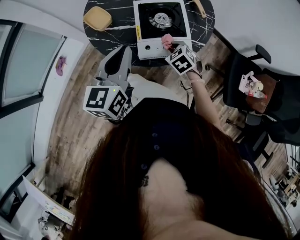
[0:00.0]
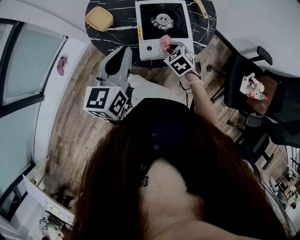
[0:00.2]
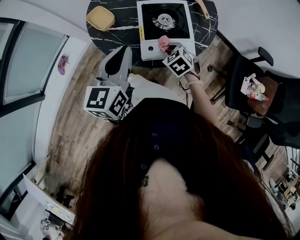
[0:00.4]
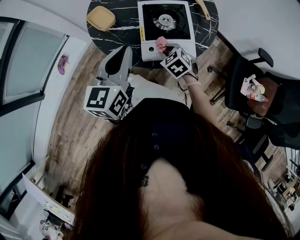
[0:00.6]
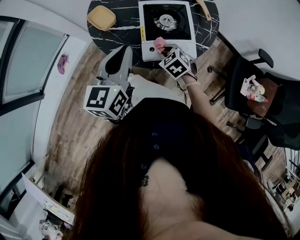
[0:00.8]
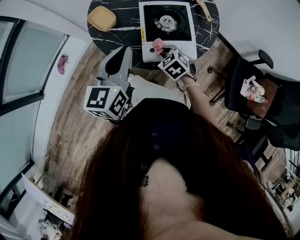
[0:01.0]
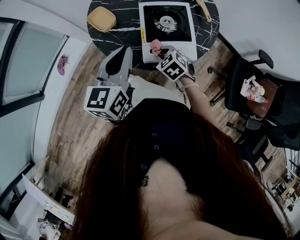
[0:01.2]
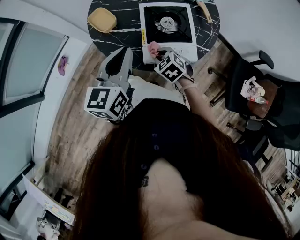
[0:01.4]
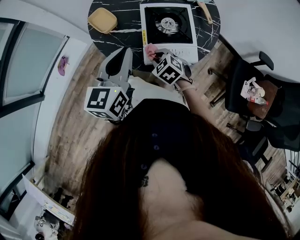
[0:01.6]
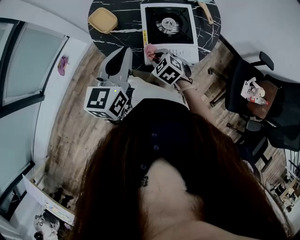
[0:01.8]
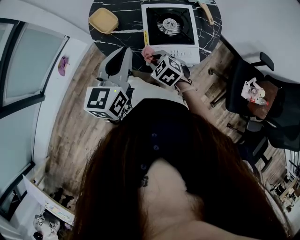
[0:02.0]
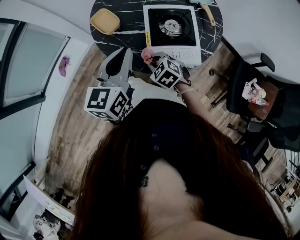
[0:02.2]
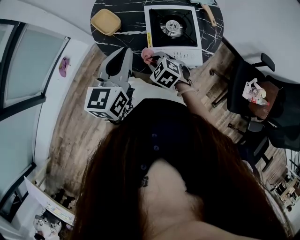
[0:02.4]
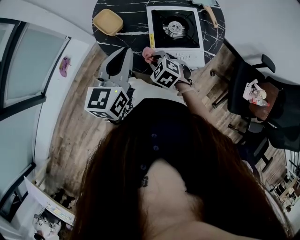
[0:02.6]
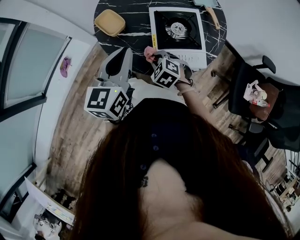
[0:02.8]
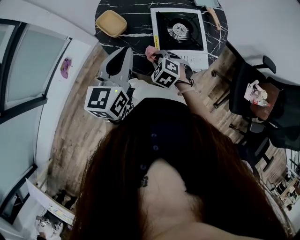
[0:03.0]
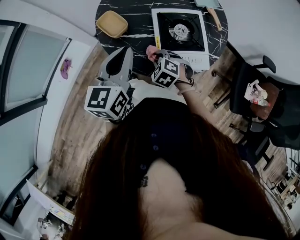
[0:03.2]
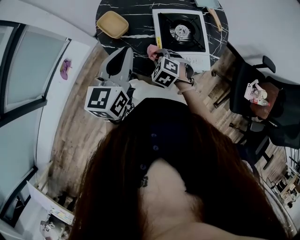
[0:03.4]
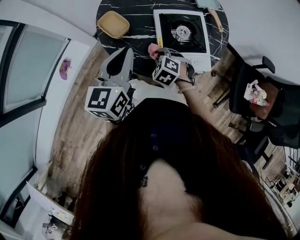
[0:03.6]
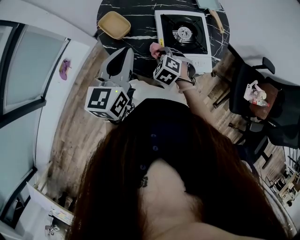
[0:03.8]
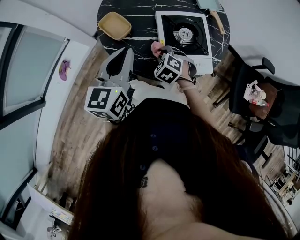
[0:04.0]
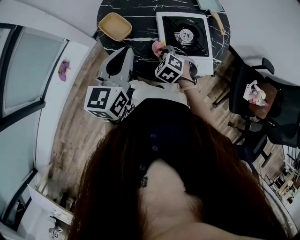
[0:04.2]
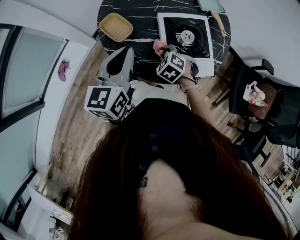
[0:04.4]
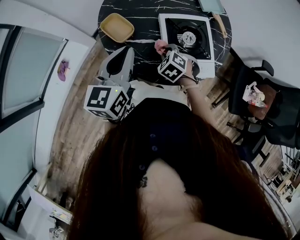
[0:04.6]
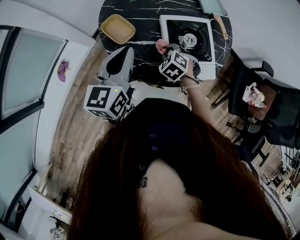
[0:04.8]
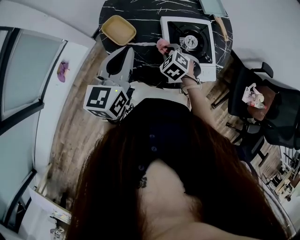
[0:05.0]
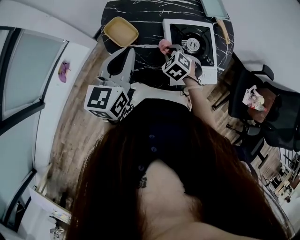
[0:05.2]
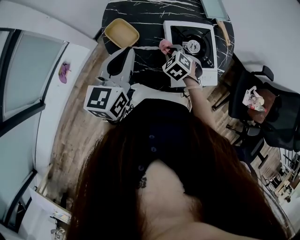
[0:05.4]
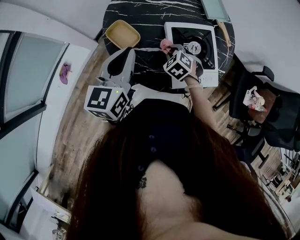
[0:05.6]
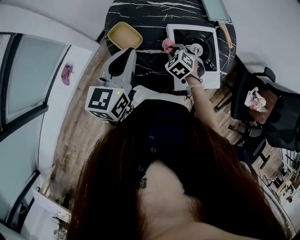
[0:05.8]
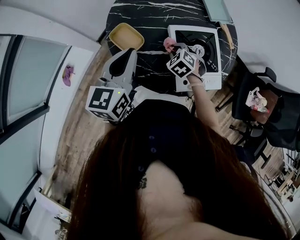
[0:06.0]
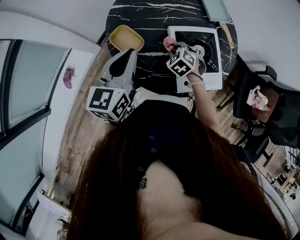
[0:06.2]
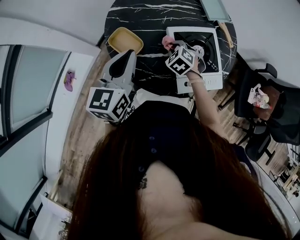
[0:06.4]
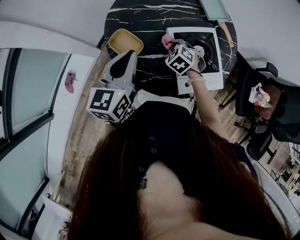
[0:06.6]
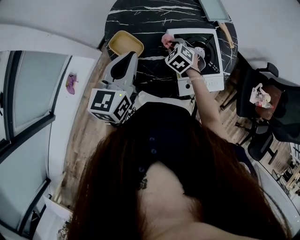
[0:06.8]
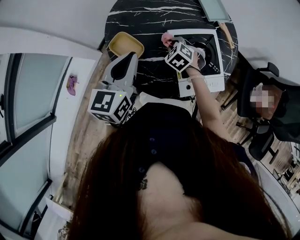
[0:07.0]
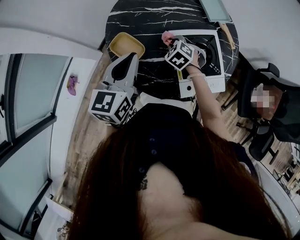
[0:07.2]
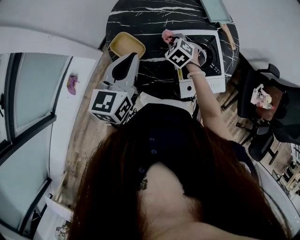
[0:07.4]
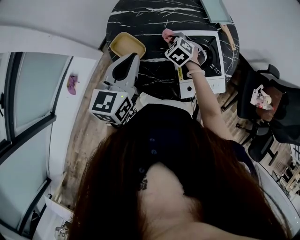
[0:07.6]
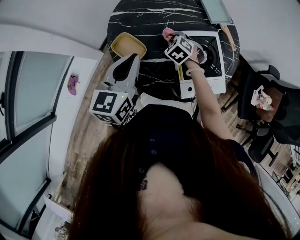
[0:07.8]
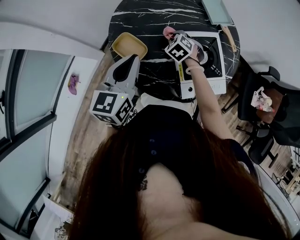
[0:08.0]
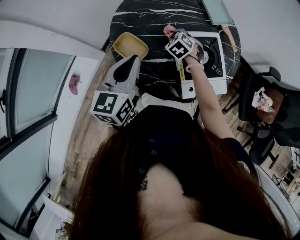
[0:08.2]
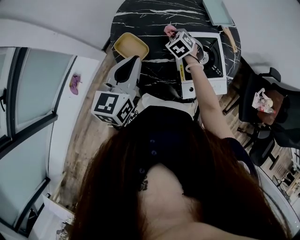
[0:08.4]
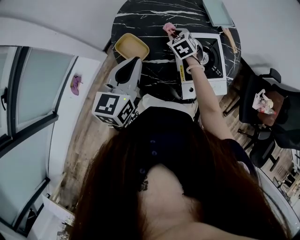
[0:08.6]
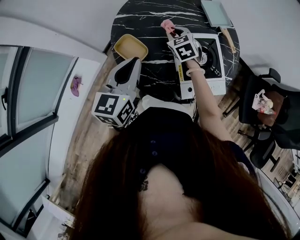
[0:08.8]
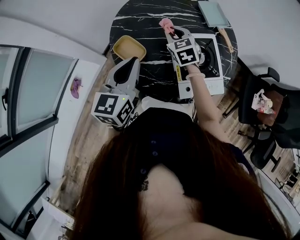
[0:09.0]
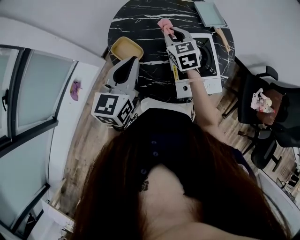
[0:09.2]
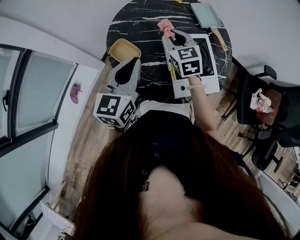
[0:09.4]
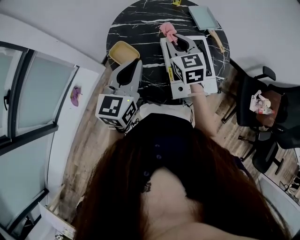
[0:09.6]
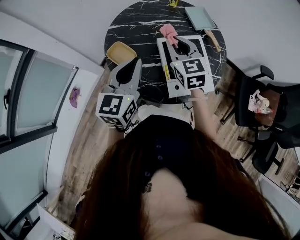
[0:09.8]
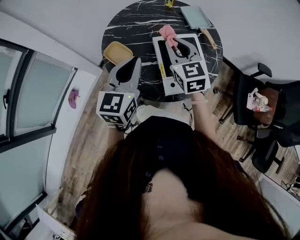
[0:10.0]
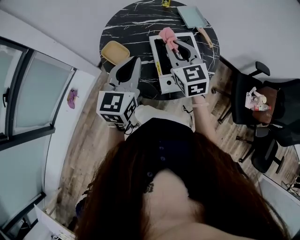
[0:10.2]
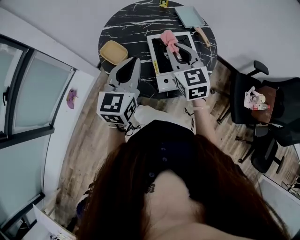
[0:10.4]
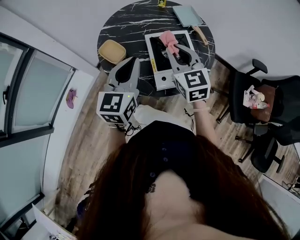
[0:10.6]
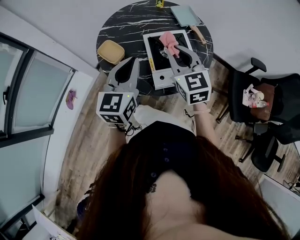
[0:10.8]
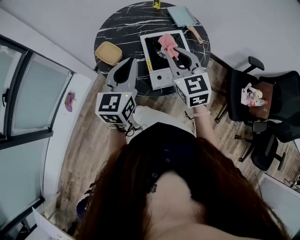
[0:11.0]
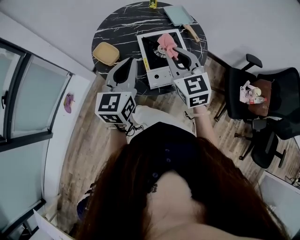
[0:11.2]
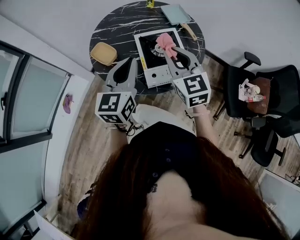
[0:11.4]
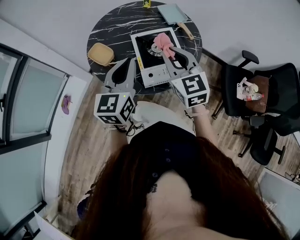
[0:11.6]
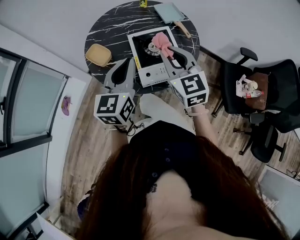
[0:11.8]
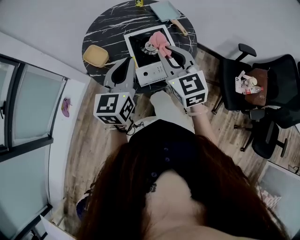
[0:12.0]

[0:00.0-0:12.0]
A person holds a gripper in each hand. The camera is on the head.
0:00.0 to 0:01.6: The right gripper is displaced to the left by about 10 cm.
0:01.6 to 0:03.0: The left gripper shifts by roughly 5 cm; the right gripper changes place by roughly 5 cm.
0:03.0 to 0:04.4: The right gripper moves forward, roughly 5 cm; the left gripper shifts by approximately 5 cm.
0:04.4 to 0:06.0: Both grippers travel together forward, some 10 cm.
0:06.0 to 0:07.6: The right gripper goes some 10 cm forward.
0:07.6 to 0:09.0: The right gripper goes approximately 10 cm upward, and rotates approximately 30 degrees.
0:09.0 to 0:10.4: The left gripper moves to the right and backward, roughly 15 cm; the right gripper moves backward, upward and to the right, approximately 25 cm.
0:10.4 to 0:12.0: The left gripper heads to the right, covering roughly 10 cm; the right gripper shifts some 10 cm backward and to the right.

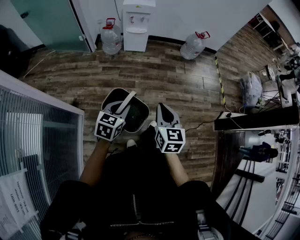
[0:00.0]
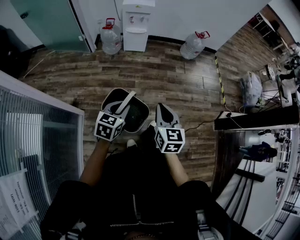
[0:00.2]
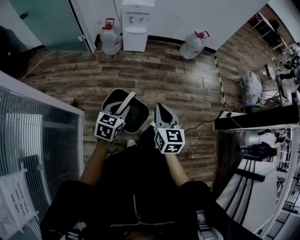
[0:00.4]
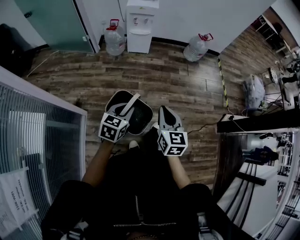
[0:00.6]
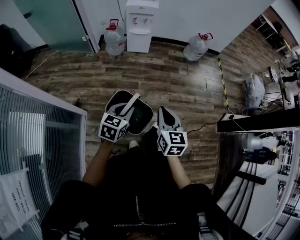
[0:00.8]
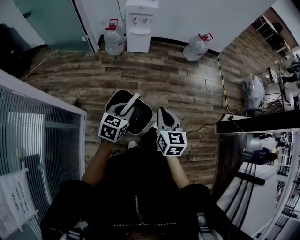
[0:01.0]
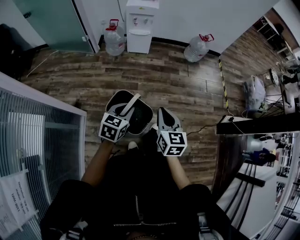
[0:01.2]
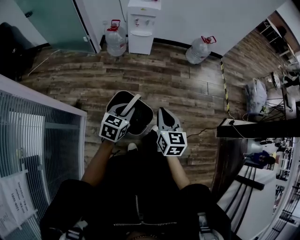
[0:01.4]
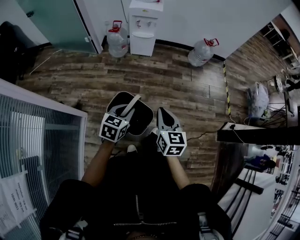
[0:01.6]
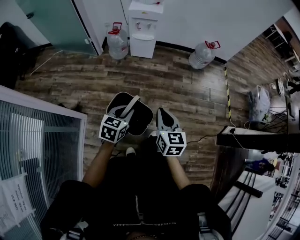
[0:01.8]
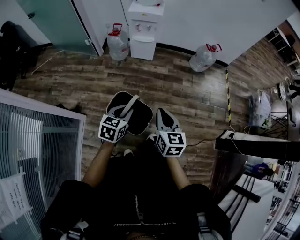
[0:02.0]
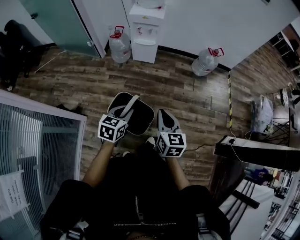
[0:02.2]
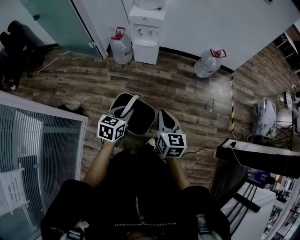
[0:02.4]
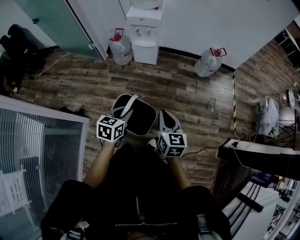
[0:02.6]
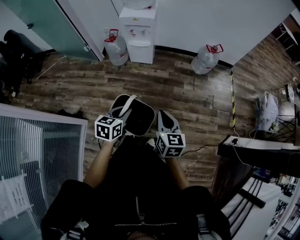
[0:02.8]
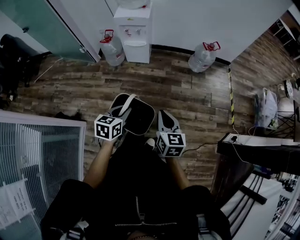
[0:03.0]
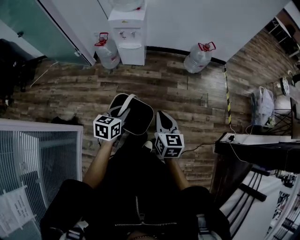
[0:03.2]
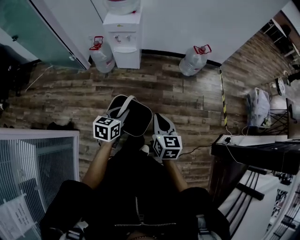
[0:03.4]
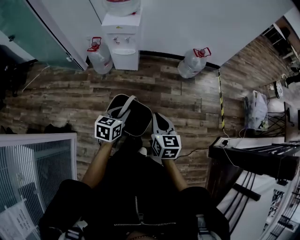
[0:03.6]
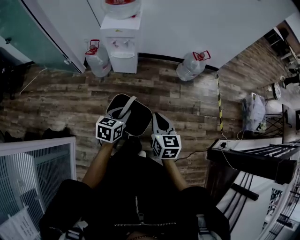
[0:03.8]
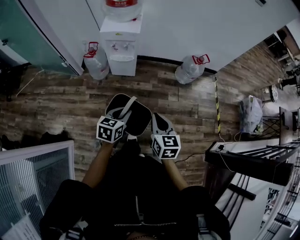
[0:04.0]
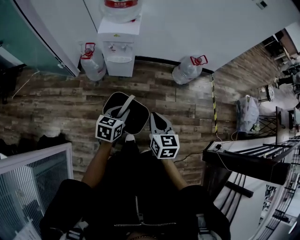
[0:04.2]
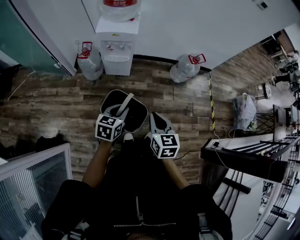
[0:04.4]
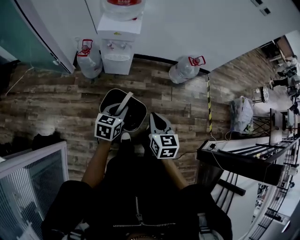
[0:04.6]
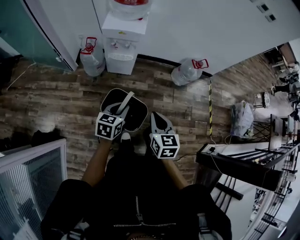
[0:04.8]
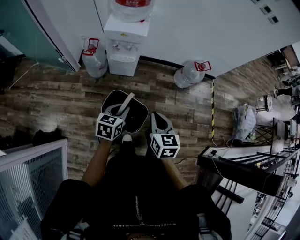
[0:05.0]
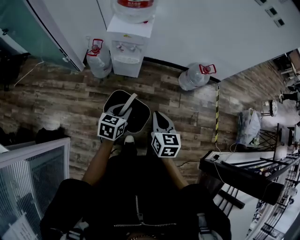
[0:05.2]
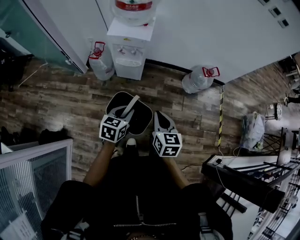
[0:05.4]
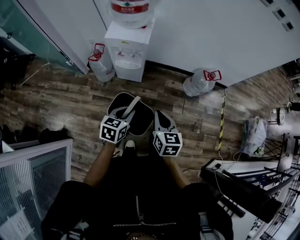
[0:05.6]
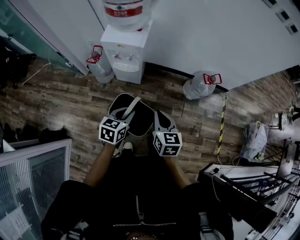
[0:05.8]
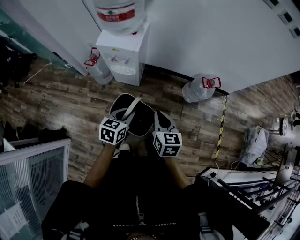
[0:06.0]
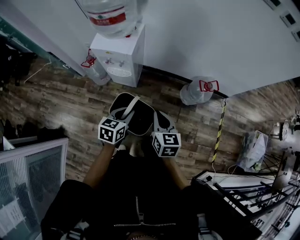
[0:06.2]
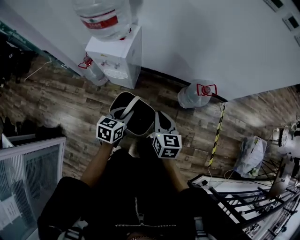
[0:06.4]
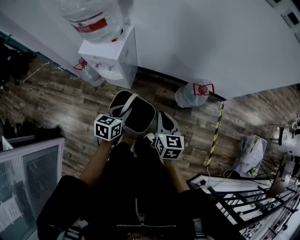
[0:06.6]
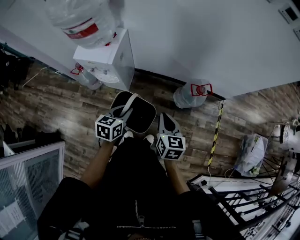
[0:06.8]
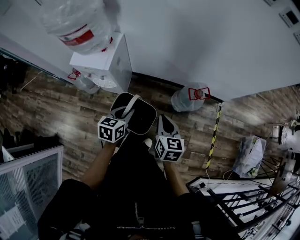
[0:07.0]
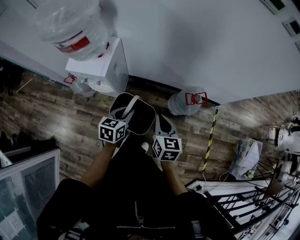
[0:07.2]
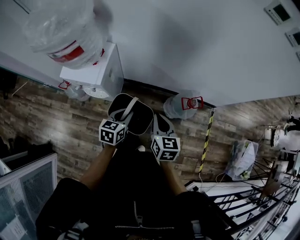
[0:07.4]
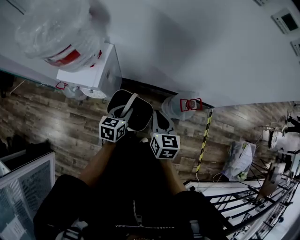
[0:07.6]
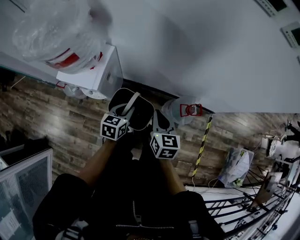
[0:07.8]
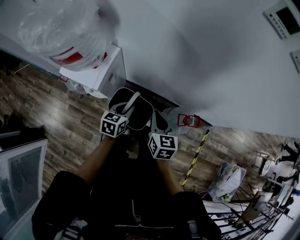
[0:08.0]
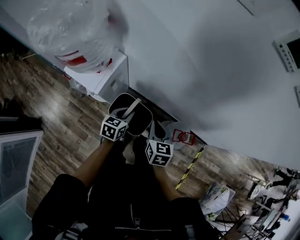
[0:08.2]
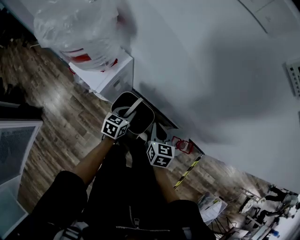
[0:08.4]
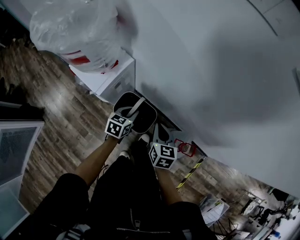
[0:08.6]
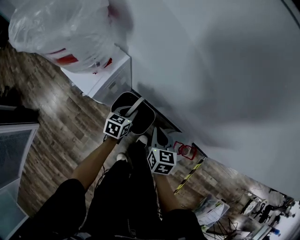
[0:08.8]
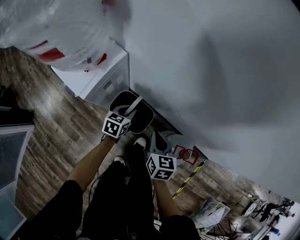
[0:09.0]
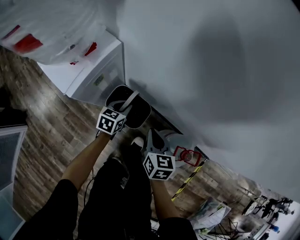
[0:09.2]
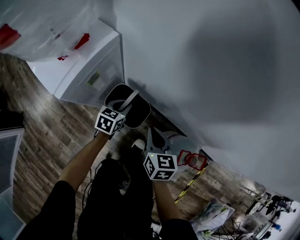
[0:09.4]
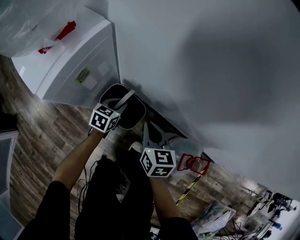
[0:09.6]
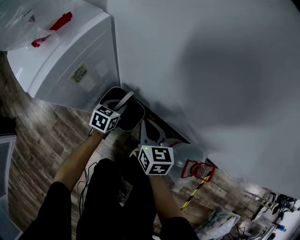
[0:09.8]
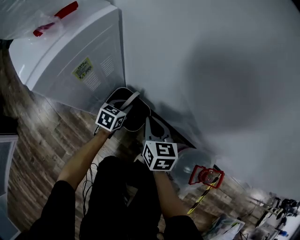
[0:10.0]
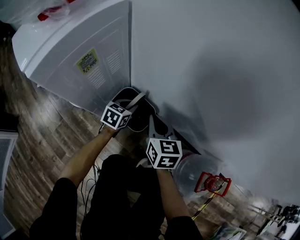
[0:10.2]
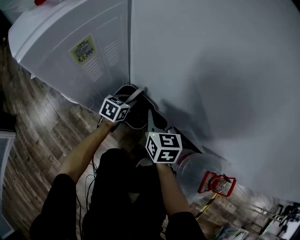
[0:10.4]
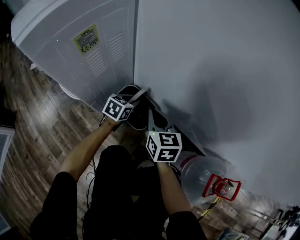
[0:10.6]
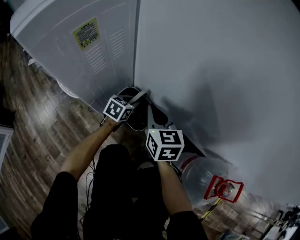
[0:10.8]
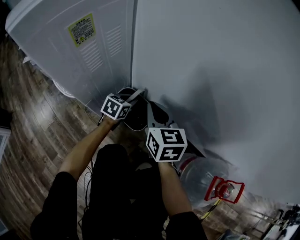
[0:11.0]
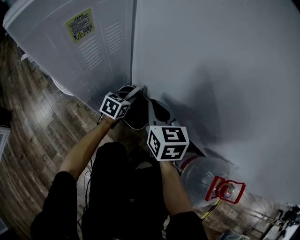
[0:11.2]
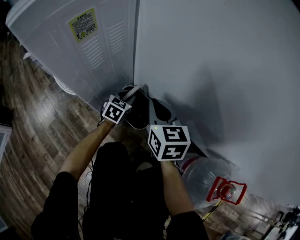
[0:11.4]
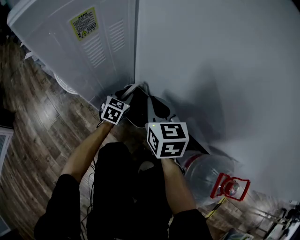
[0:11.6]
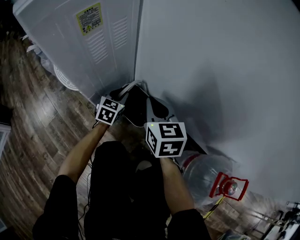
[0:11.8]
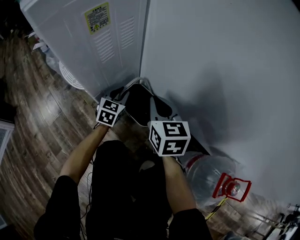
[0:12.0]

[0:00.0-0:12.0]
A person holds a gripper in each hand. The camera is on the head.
0:00.0 to 0:01.6: The two grippers go about 5 cm forward.
0:01.6 to 0:03.0: The two grippers go about 20 cm forward and to the right.
0:03.0 to 0:04.4: The right gripper travels forward and to the left by some 20 cm, while the left gripper moves forward, roughly 20 cm.
0:04.4 to 0:06.0: The right gripper shifts approximately 20 cm forward; the left gripper is displaced forward and to the right by approximately 20 cm.
0:06.0 to 0:07.6: Both grippers travel together forward and to the right, some 30 cm.
0:07.6 to 0:09.0: The left gripper heads forward and downward, covering roughly 25 cm. The right gripper moves downward and forward, approximately 20 cm.
0:09.0 to 0:10.4: The grippers both shift downward by approximately 30 cm.
0:10.4 to 0:12.0: The left gripper moves to the left, about 10 cm, and turns by some 30 degrees.
